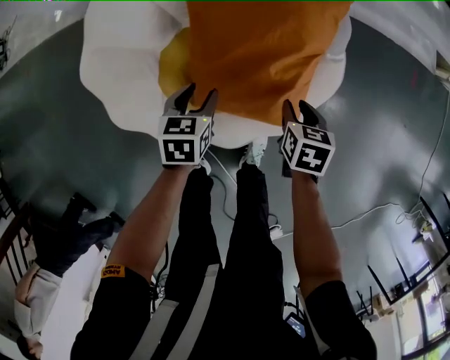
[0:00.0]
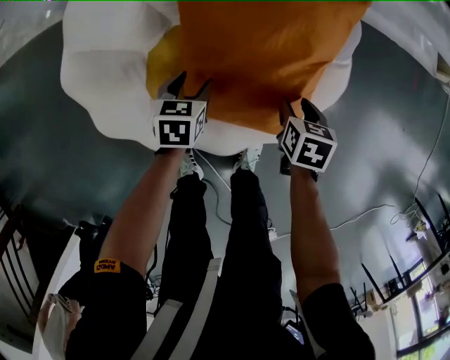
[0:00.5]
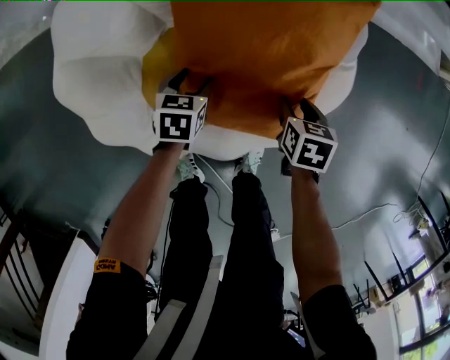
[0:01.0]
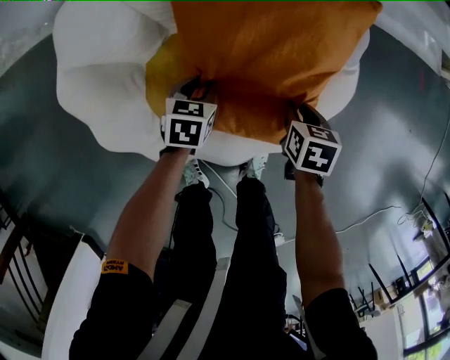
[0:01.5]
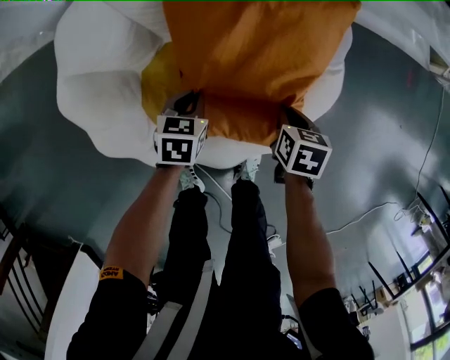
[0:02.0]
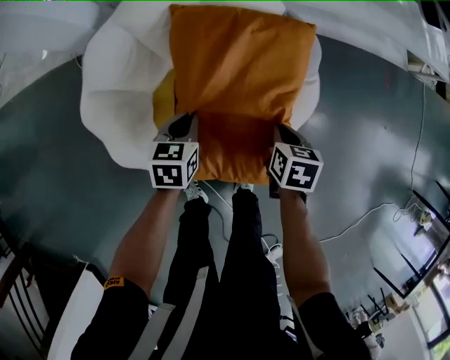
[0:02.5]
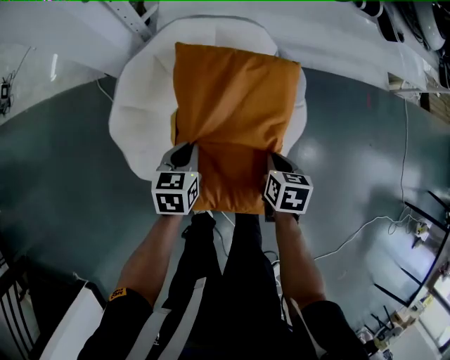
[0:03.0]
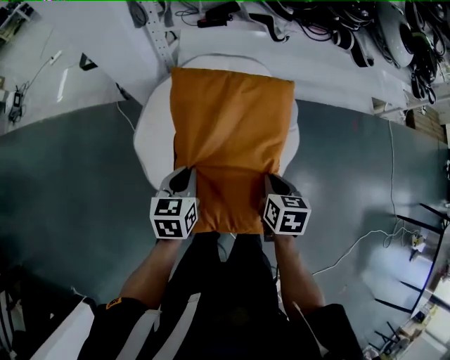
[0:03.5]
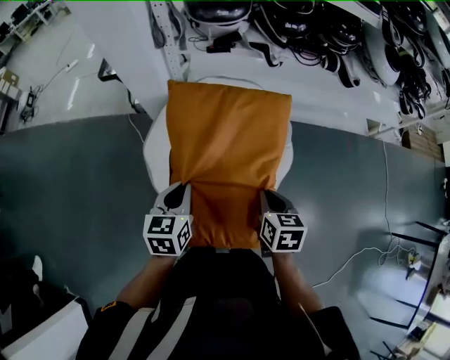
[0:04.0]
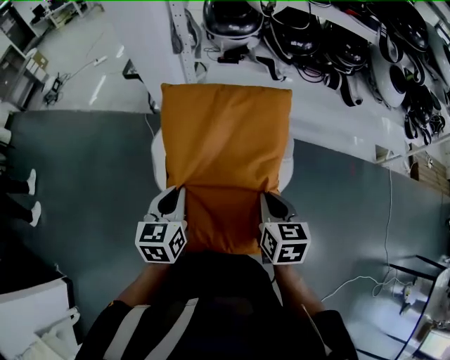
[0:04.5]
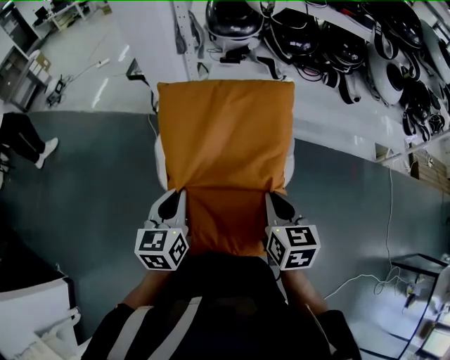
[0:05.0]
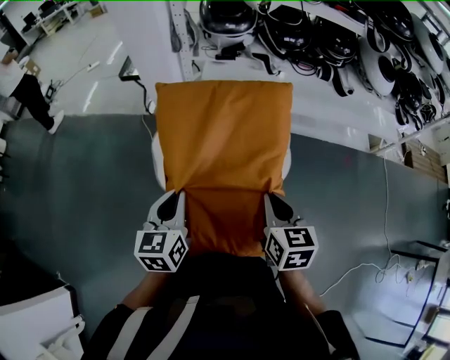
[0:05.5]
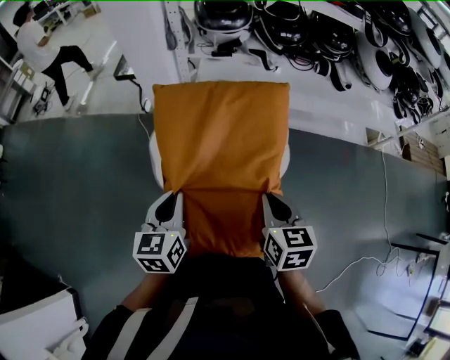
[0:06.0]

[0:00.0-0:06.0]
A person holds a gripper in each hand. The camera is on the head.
0:00.0 to 0:02.0: The two grippers go some 10 cm downward. The right gripper closes its fingers, while the left gripper closes its fingers.
0:02.0 to 0:04.0: The grippers both shift upward by some 50 cm. The right gripper swivels about 20 degrees. Meanwhile the left gripper changes its angle by approximately 30 degrees.
0:04.0 to 0:06.0: The left gripper travels backward and upward by approximately 15 cm. The right gripper heads upward and backward, covering roughly 15 cm.

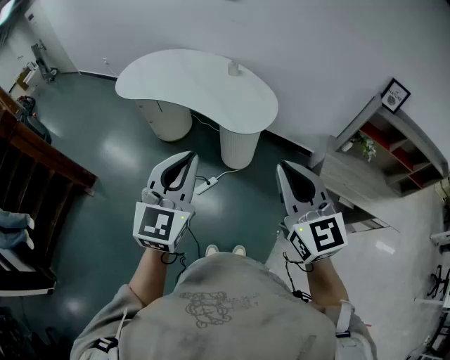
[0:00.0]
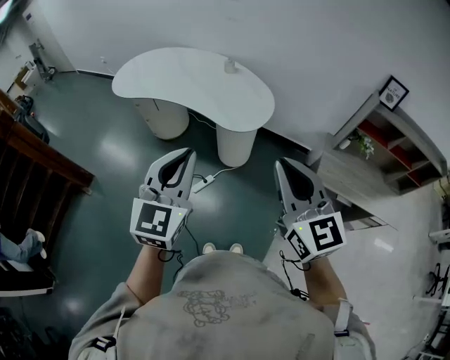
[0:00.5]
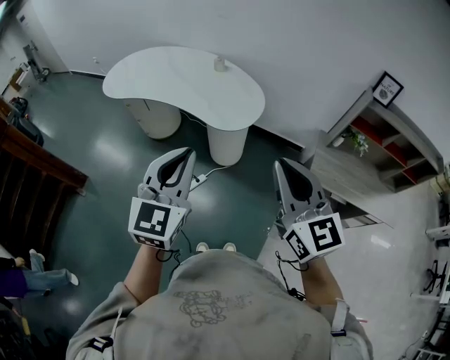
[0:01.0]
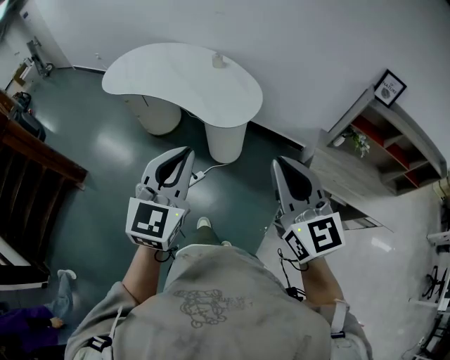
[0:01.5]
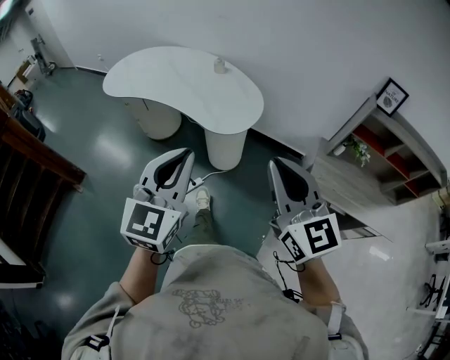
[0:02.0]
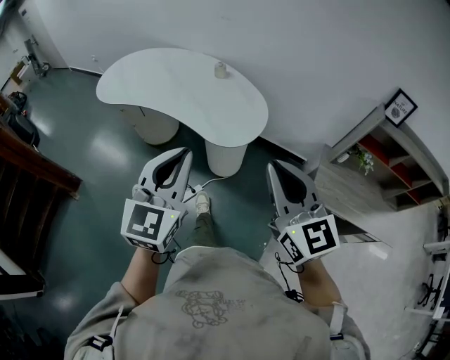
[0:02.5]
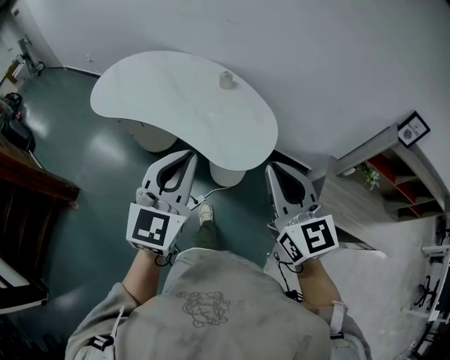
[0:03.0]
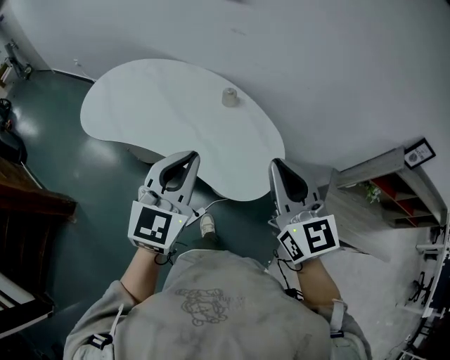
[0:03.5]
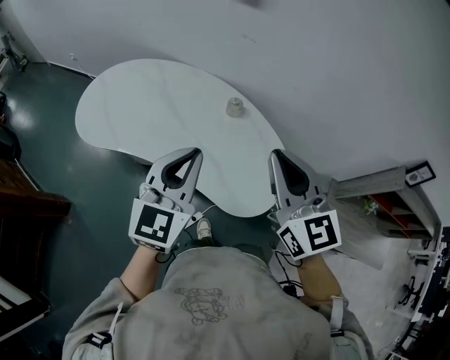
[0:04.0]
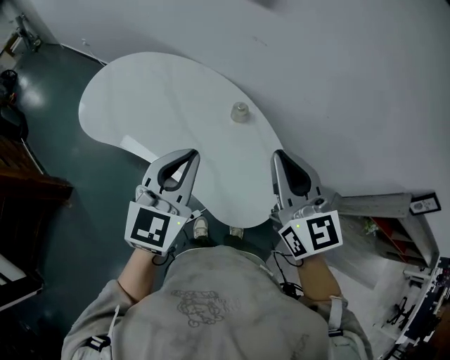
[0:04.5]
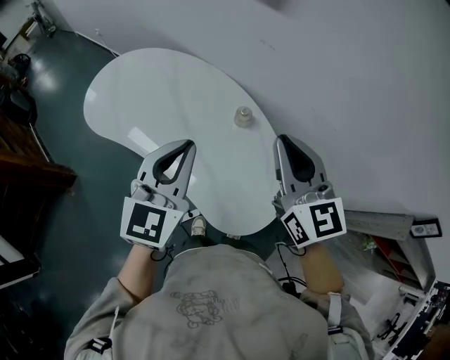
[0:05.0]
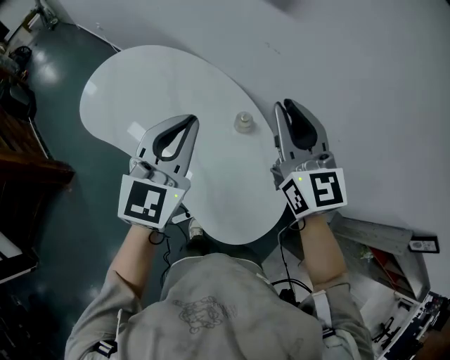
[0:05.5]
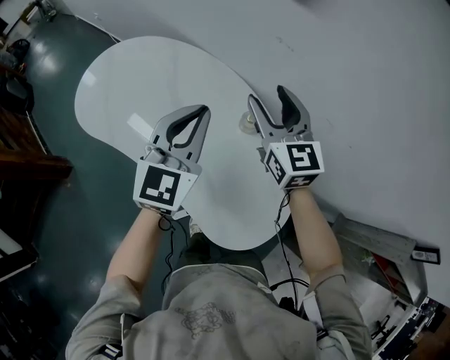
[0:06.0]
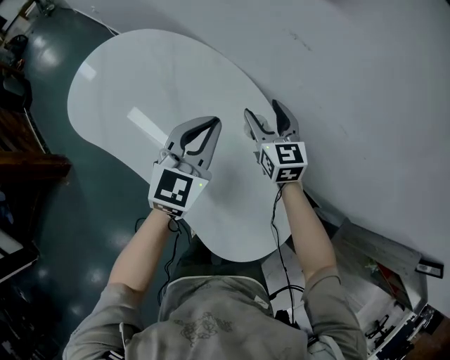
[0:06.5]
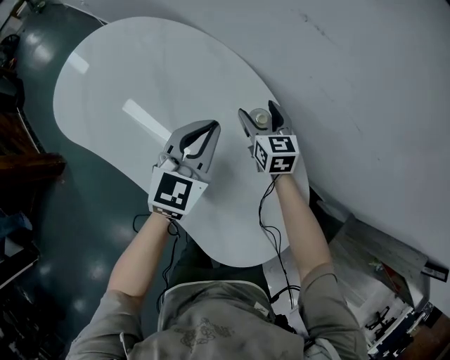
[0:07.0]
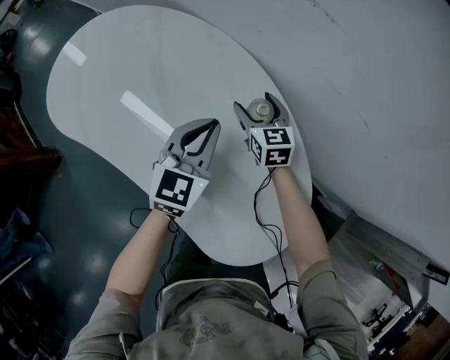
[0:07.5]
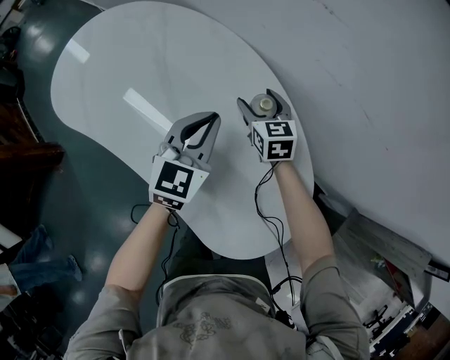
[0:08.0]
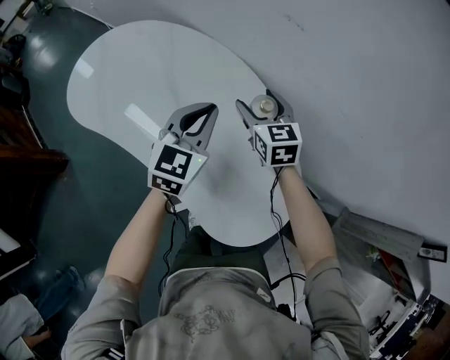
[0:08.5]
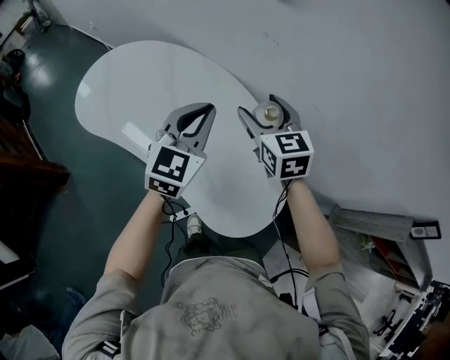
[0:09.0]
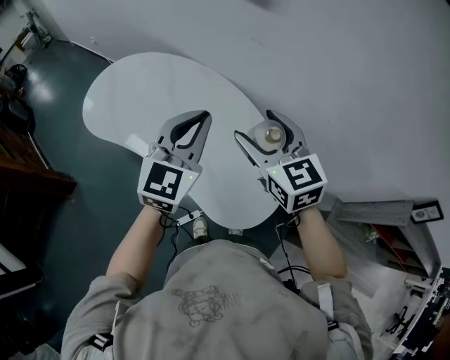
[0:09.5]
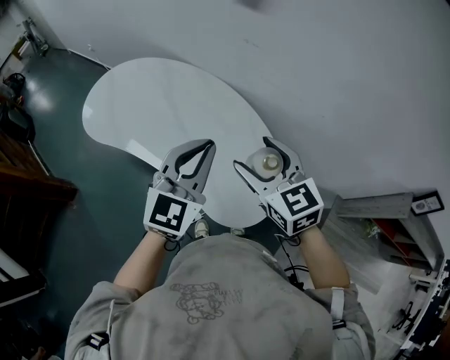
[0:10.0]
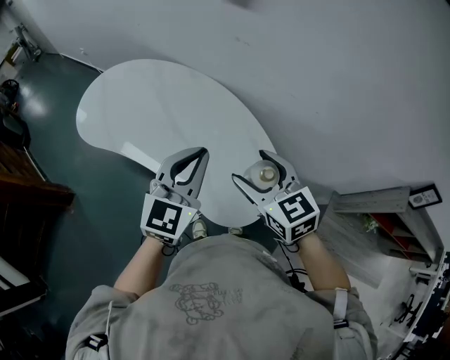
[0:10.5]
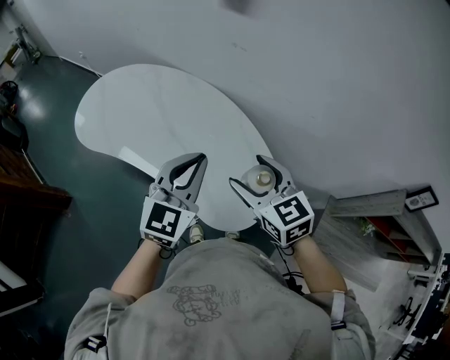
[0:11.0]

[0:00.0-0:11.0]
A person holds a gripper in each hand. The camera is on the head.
0:00.0 to 0:02.0: The two grippers go roughly 10 cm to the right.
0:02.0 to 0:03.5: The two grippers go roughly 40 cm forward.
0:03.5 to 0:05.5: The two grippers go about 30 cm forward.
0:05.5 to 0:07.5: The grippers both shift downward and forward by some 35 cm. The right gripper swivels about 30 degrees, and opens up.
0:07.5 to 0:09.0: Both grippers travel together upward and backward, some 25 cm.
0:09.0 to 0:11.0: Both grippers travel together backward, roughly 20 cm.

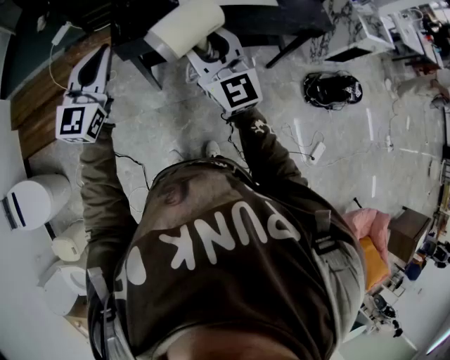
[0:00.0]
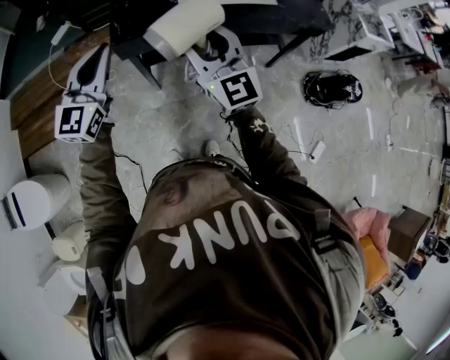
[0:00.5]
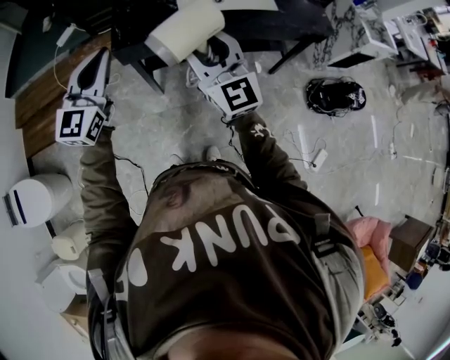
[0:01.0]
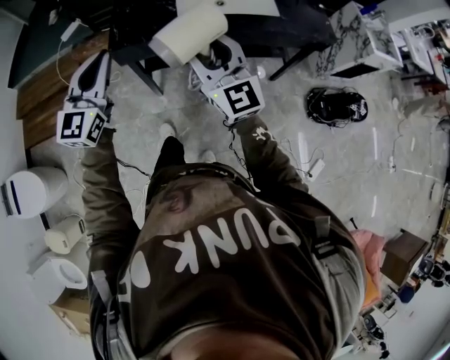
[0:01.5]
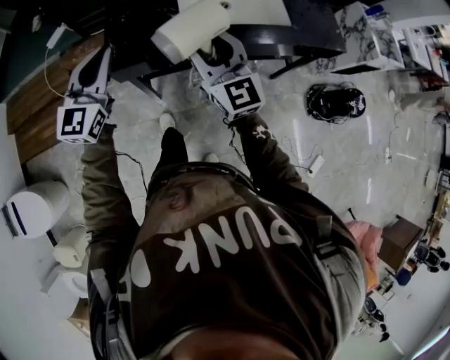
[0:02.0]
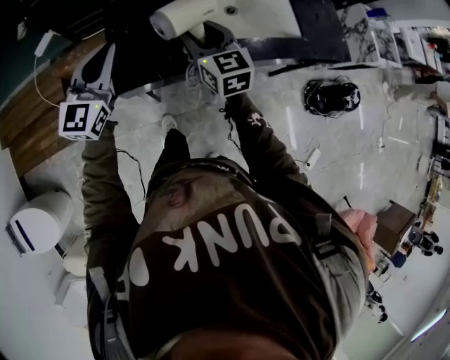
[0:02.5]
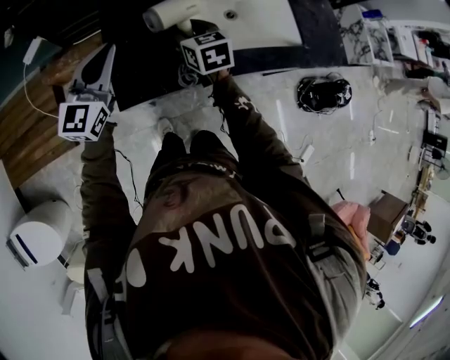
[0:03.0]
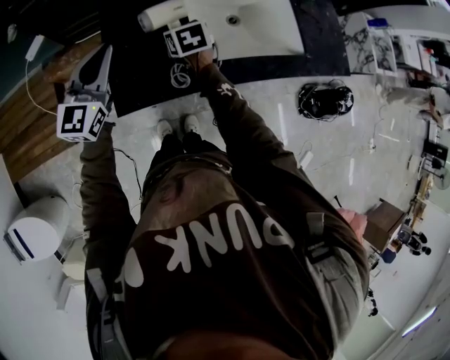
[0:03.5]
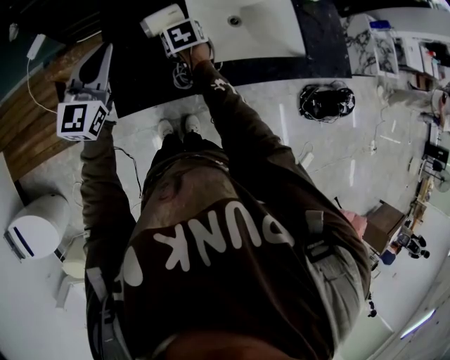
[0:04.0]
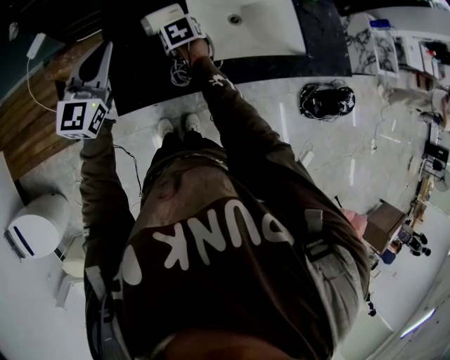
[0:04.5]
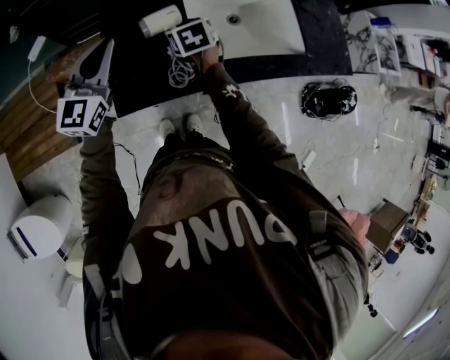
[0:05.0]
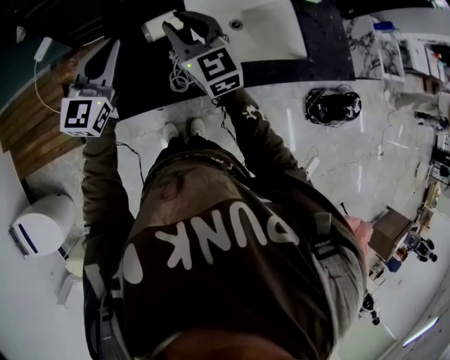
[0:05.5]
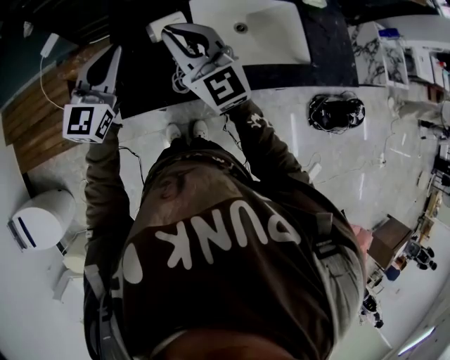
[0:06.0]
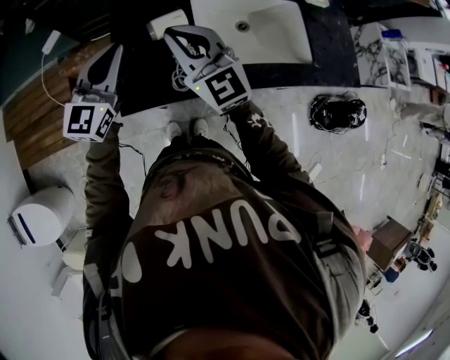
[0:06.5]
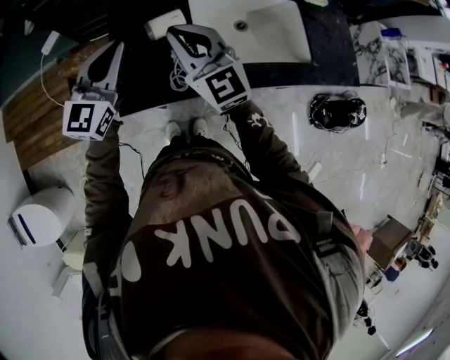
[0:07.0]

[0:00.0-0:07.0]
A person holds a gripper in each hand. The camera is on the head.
0:00.0 to 0:02.0: The two grippers go some 15 cm forward.
0:02.0 to 0:03.5: The left gripper goes approximately 20 cm forward. The right gripper travels forward and downward by roughly 35 cm, and angles its fingers downward, by about 50 degrees.
0:03.5 to 0:05.0: The right gripper opens its fingers.
0:05.0 to 0:07.0: The right gripper goes some 20 cm upward and backward, angles its fingers upward, by some 50 degrees, and closes.

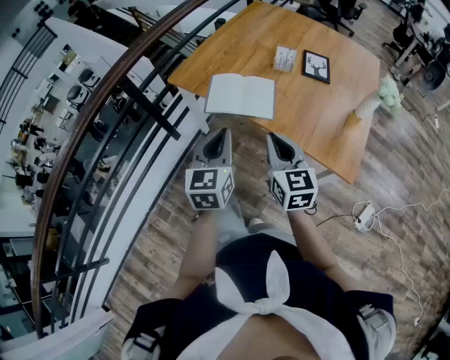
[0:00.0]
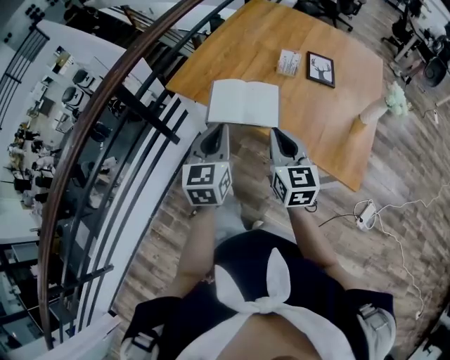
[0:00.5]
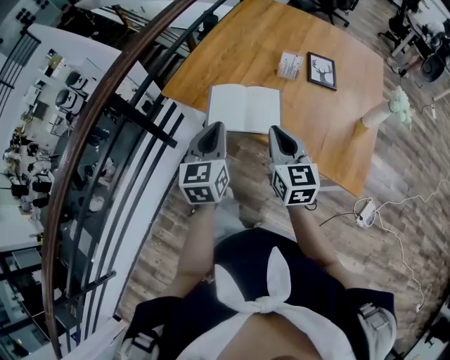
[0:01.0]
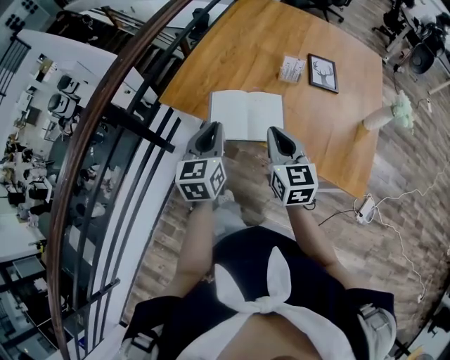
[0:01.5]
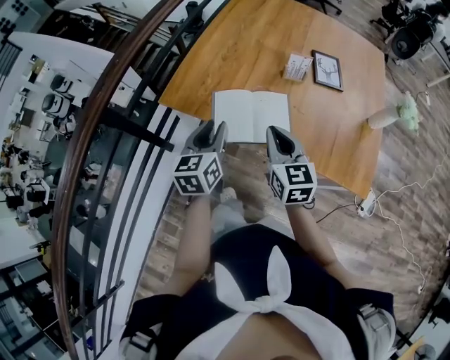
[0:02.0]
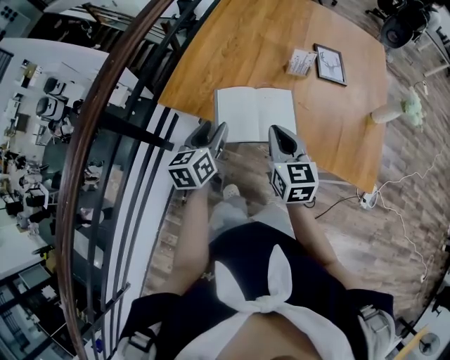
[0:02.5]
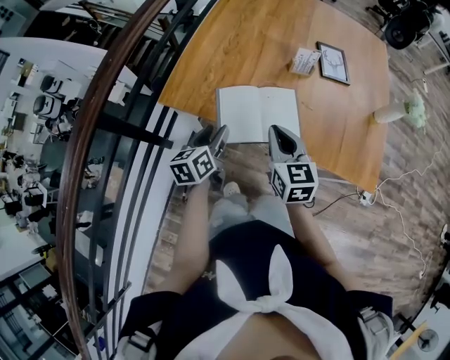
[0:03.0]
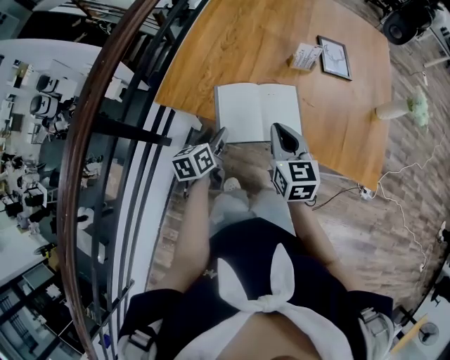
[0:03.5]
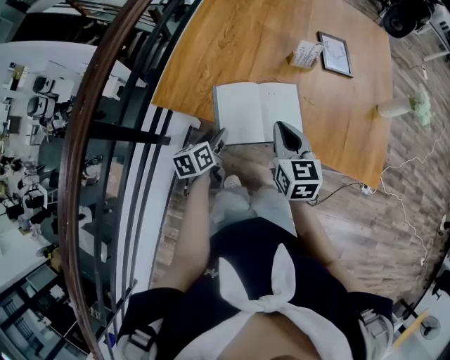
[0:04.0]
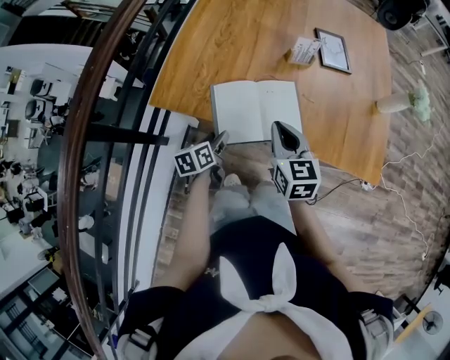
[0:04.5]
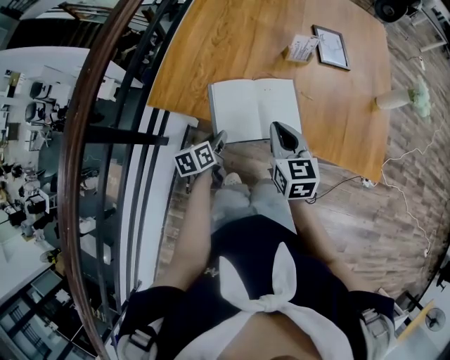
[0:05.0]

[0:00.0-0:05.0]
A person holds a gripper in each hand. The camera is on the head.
0:00.0 to 0:02.5: The right gripper is displaced forward and to the left by approximately 25 cm; the left gripper travels forward, to the left and downward by approximately 30 cm, swivels some 30 degrees, and opens up.
0:02.5 to 0:05.0: The left gripper moves downward, approximately 15 cm, and changes its angle by about 20 degrees. Meanwhile the right gripper heads downward, covering some 5 cm.
